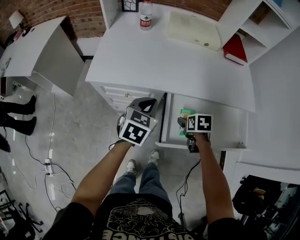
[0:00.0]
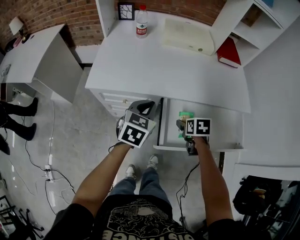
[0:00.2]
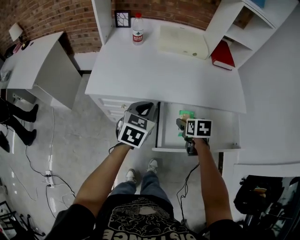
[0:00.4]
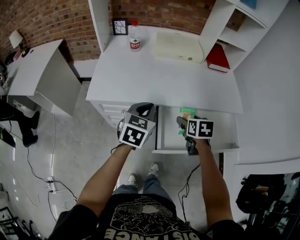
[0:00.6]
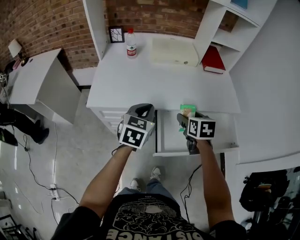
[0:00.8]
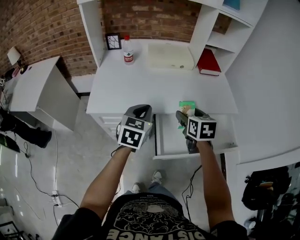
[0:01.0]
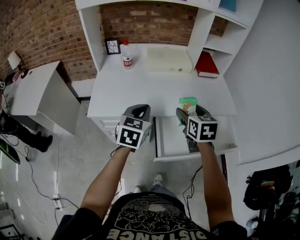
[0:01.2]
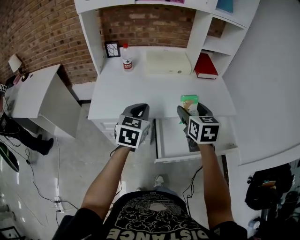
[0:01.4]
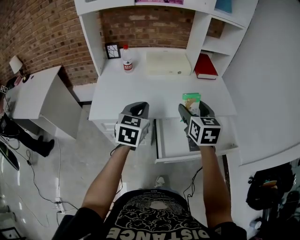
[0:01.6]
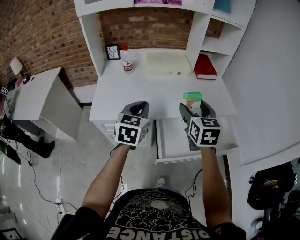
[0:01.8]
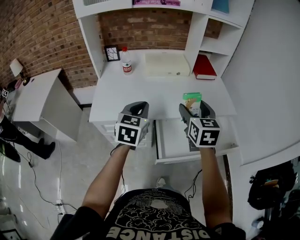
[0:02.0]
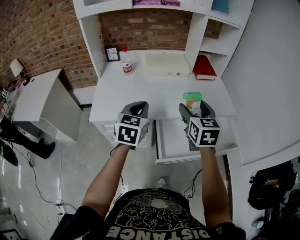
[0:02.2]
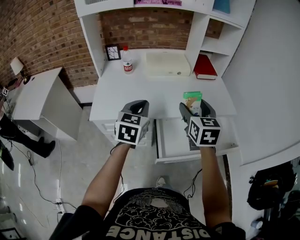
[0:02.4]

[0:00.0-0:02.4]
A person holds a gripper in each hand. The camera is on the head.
0:00.0 to 0:01.2: The left gripper heads upward, covering approximately 15 cm. Meanwhile the right gripper travels upward by roughly 25 cm, and points its fingers about 40 degrees further upward.
0:01.2 to 0:02.4: The right gripper heads upward, covering roughly 5 cm.

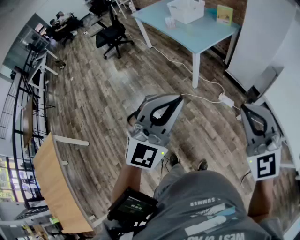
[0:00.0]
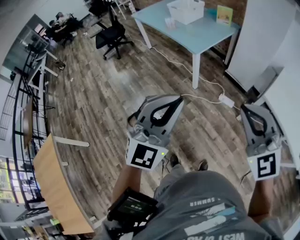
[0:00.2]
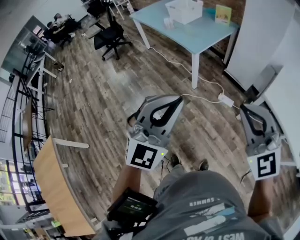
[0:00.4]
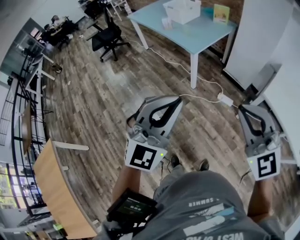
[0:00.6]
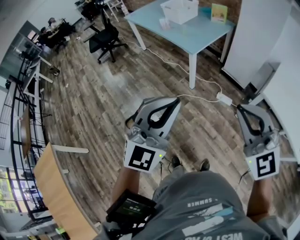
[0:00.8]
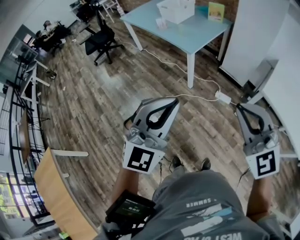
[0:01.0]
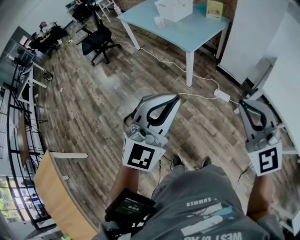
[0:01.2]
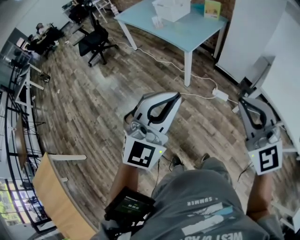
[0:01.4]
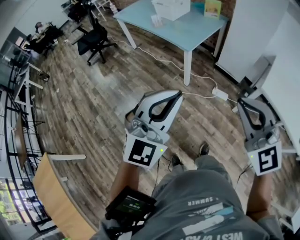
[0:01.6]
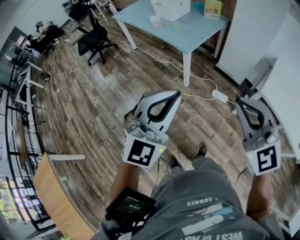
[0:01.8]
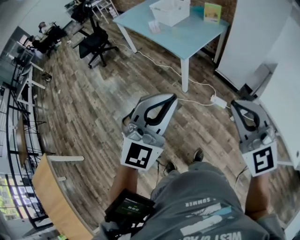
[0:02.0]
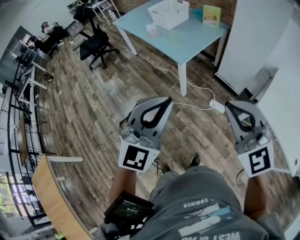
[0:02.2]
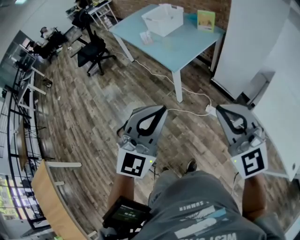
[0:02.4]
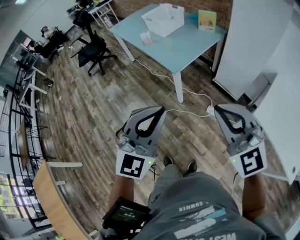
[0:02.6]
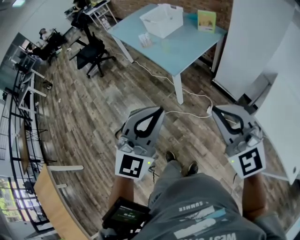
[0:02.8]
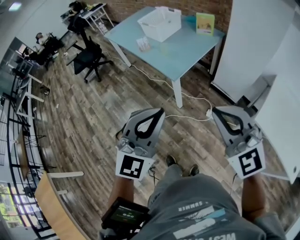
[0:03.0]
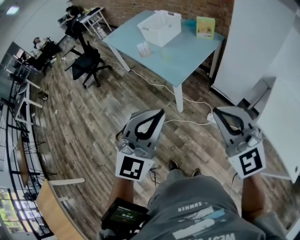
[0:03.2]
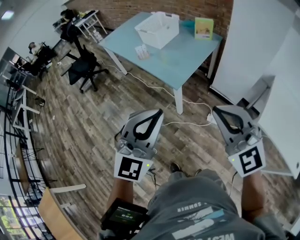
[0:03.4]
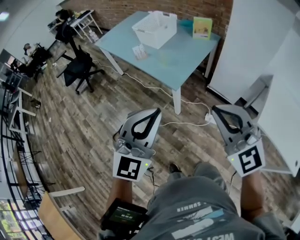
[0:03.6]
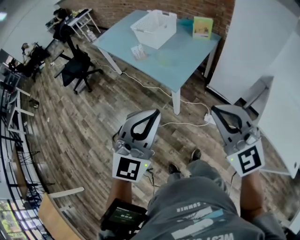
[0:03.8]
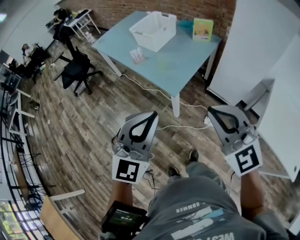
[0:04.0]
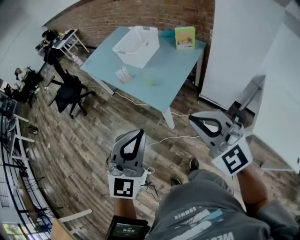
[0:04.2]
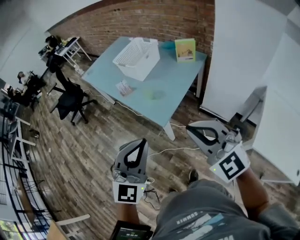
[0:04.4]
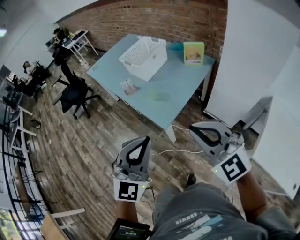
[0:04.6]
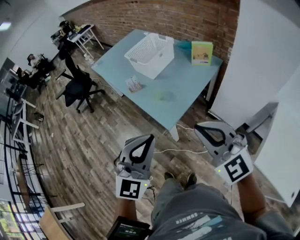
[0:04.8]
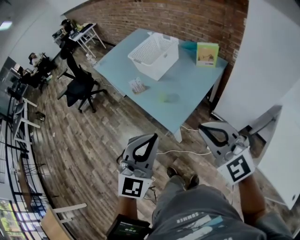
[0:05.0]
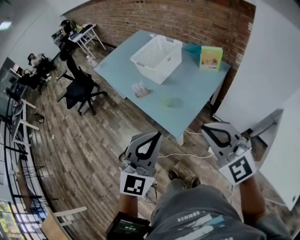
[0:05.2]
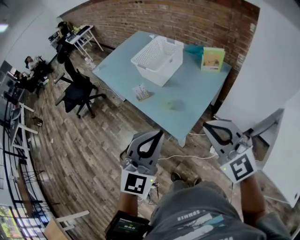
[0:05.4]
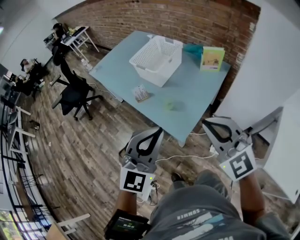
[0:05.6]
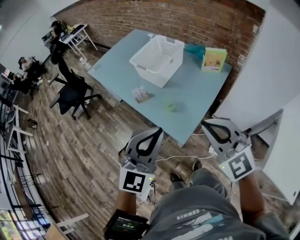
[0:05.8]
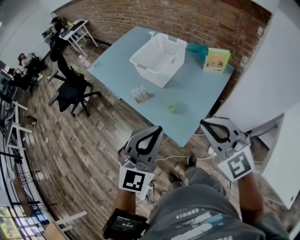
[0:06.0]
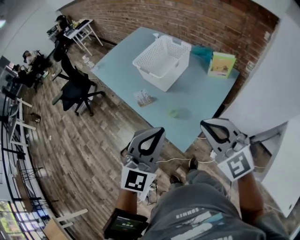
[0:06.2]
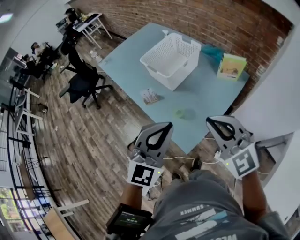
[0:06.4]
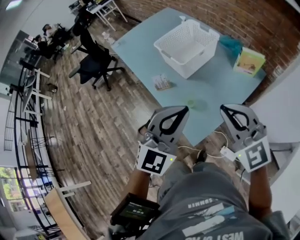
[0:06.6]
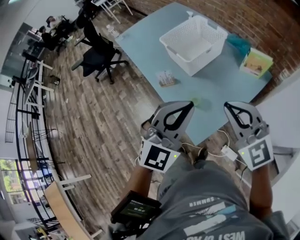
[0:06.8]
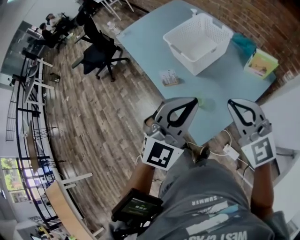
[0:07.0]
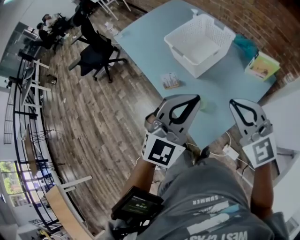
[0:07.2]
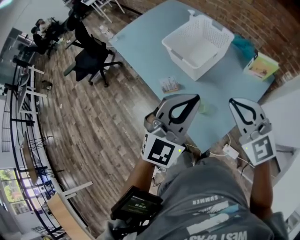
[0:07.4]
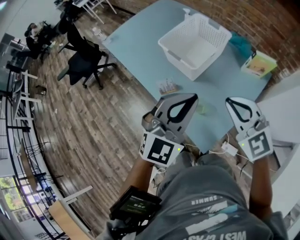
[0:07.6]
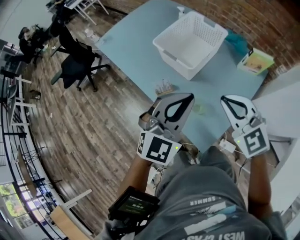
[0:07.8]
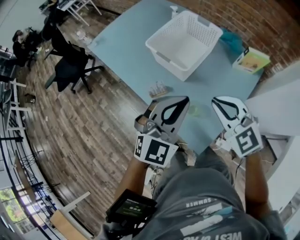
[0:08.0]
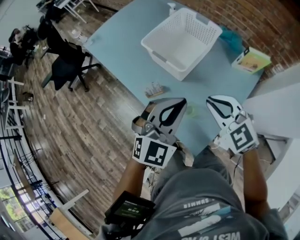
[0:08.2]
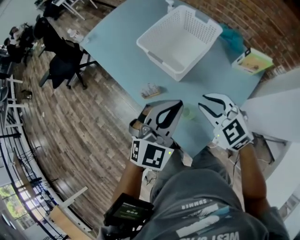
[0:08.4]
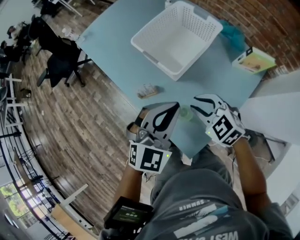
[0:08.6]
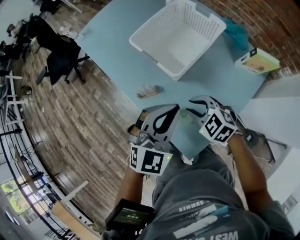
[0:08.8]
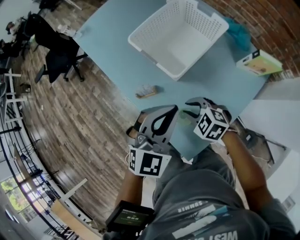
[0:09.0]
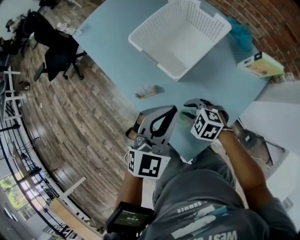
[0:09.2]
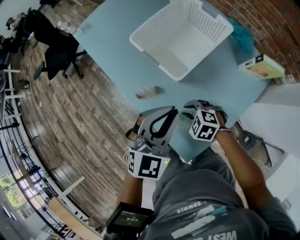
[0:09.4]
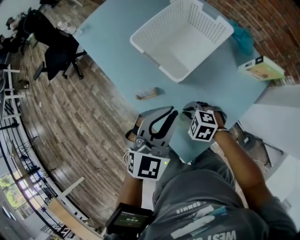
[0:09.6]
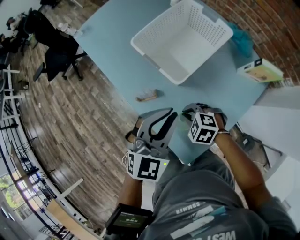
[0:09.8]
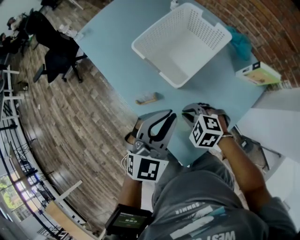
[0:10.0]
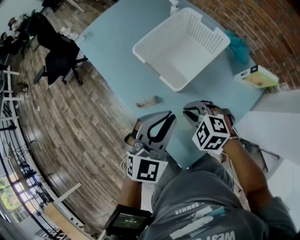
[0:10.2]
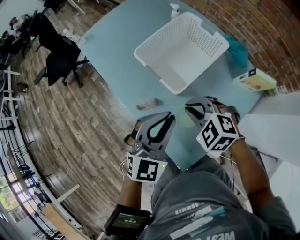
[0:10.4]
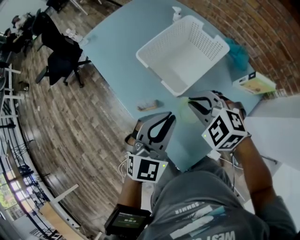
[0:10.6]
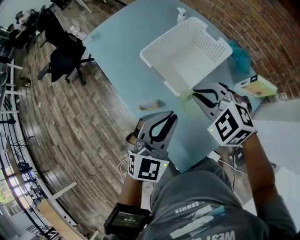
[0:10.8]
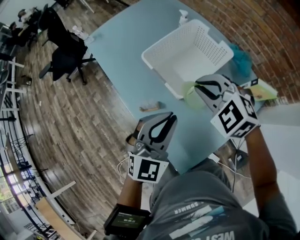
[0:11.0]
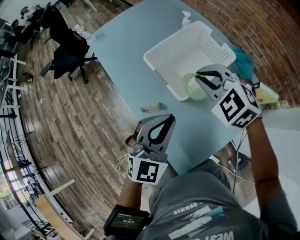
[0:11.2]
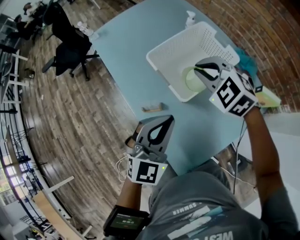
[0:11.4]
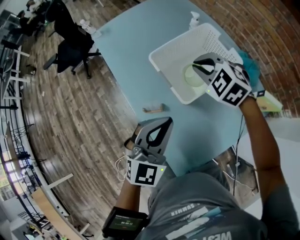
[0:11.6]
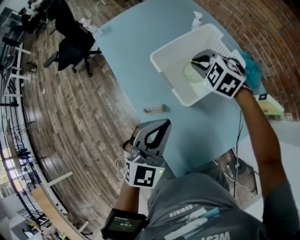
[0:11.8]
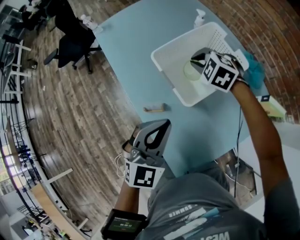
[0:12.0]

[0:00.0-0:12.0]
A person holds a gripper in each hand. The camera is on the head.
0:00.0 to 0:01.6: The right gripper heads to the left, covering about 5 cm. Meanwhile the left gripper is displaced forward and to the left by roughly 10 cm.
0:01.6 to 0:03.0: The left gripper shifts about 20 cm forward and to the right, while the right gripper travels forward by approximately 20 cm.
0:03.0 to 0:04.4: The two grippers go roughly 20 cm forward.
0:04.4 to 0:06.0: The grippers both shift forward by roughly 25 cm.
0:06.0 to 0:07.6: The grippers both shift forward by approximately 20 cm.
0:07.6 to 0:09.0: The right gripper is displaced downward by approximately 25 cm, swivels some 40 degrees, and opens up; the left gripper goes roughly 15 cm downward and forward.
0:09.0 to 0:10.4: The right gripper heads upward and forward, covering roughly 15 cm.
0:10.4 to 0:12.0: The right gripper shifts approximately 20 cm forward.

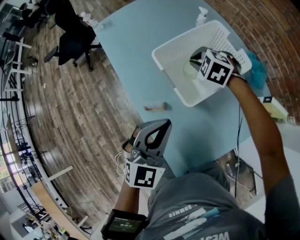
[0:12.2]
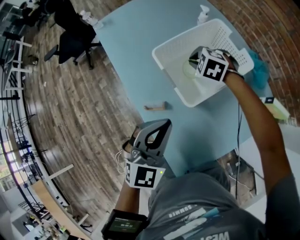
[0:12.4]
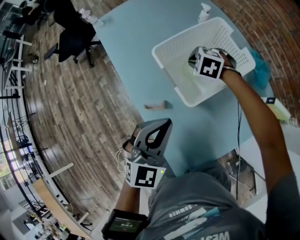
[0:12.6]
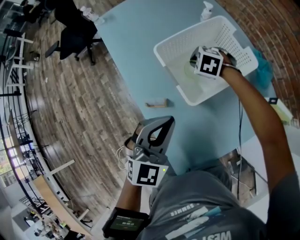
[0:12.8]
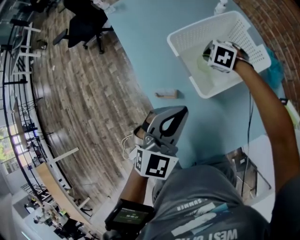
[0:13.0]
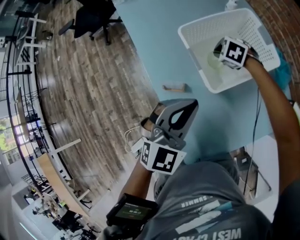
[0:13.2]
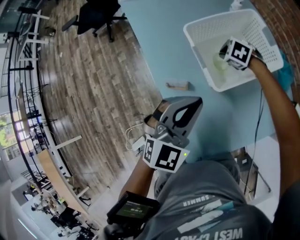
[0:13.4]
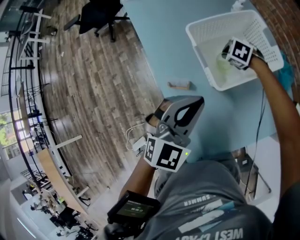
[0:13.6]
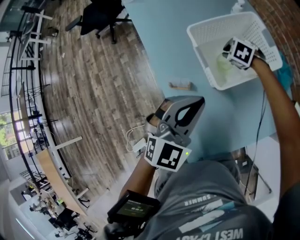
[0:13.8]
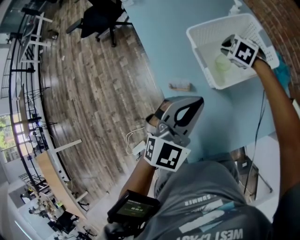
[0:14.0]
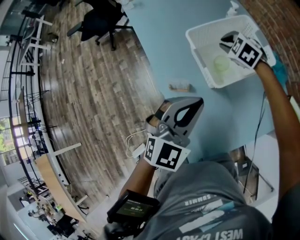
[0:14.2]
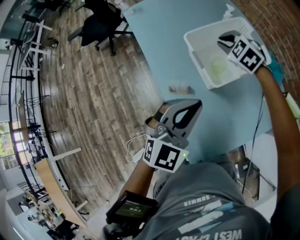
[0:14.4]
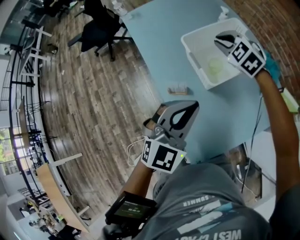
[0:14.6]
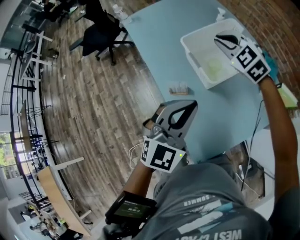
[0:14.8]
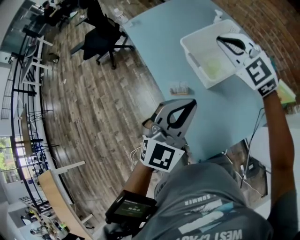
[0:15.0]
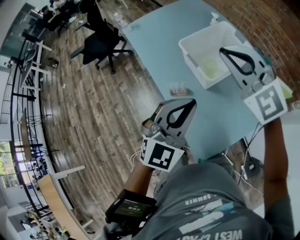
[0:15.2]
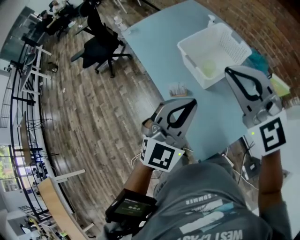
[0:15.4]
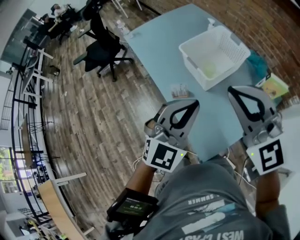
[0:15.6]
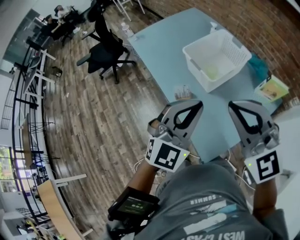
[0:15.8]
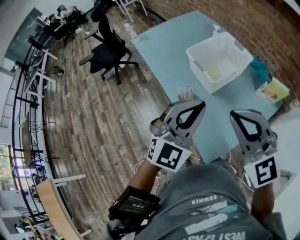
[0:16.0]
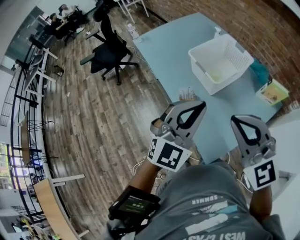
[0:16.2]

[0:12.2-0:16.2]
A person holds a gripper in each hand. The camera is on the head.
0:12.2 to 0:13.6: The right gripper moves downward, about 10 cm, and rotates approximately 20 degrees.
0:13.6 to 0:14.8: The left gripper heads upward, covering about 5 cm; the right gripper travels upward by some 25 cm, and angles its fingers upward, by approximately 40 degrees.
0:14.8 to 0:16.2: The left gripper is displaced backward and upward by roughly 10 cm, while the right gripper heads backward, covering approximately 35 cm, and changes its angle by approximately 20 degrees.

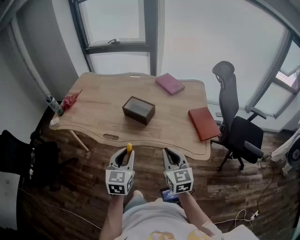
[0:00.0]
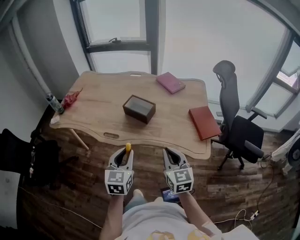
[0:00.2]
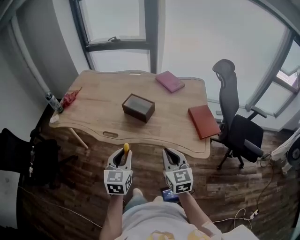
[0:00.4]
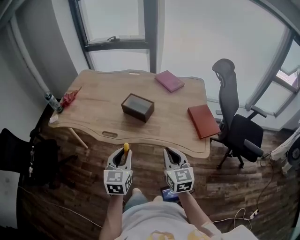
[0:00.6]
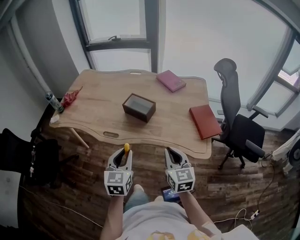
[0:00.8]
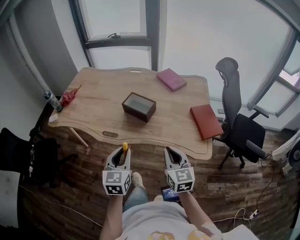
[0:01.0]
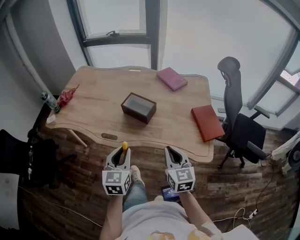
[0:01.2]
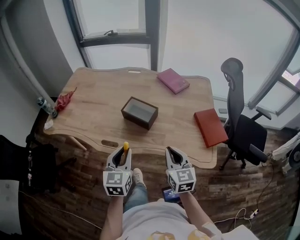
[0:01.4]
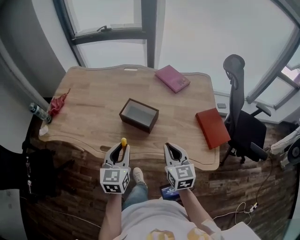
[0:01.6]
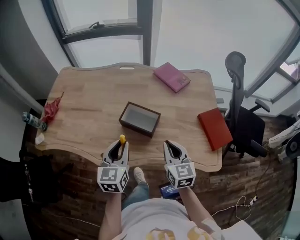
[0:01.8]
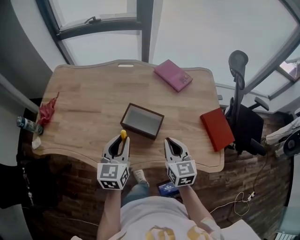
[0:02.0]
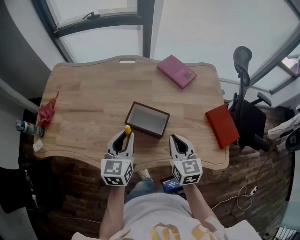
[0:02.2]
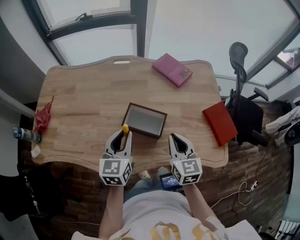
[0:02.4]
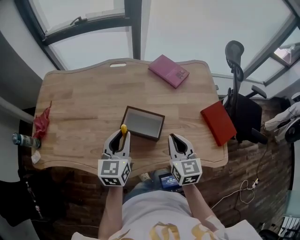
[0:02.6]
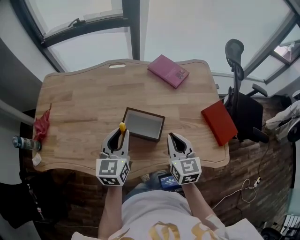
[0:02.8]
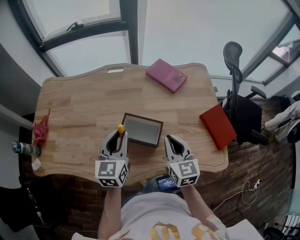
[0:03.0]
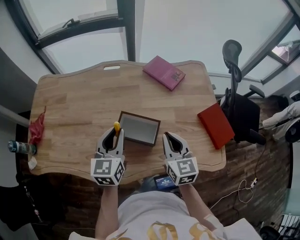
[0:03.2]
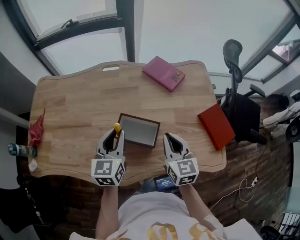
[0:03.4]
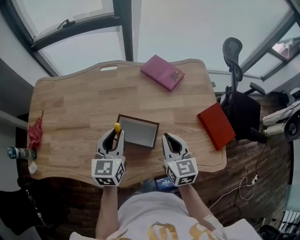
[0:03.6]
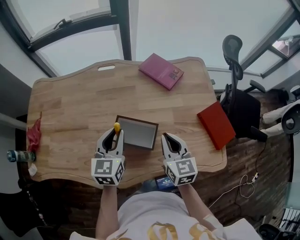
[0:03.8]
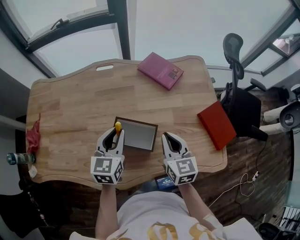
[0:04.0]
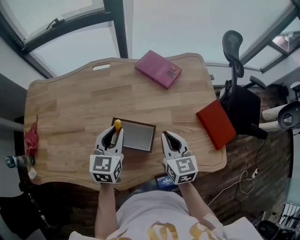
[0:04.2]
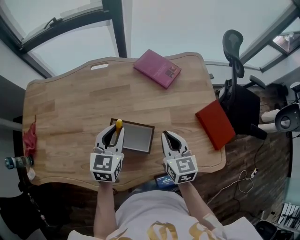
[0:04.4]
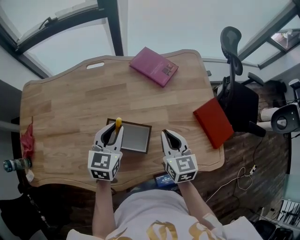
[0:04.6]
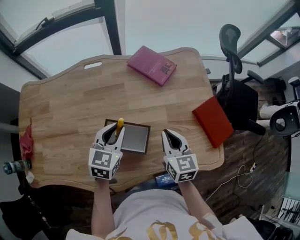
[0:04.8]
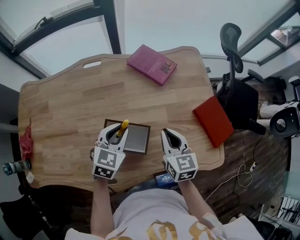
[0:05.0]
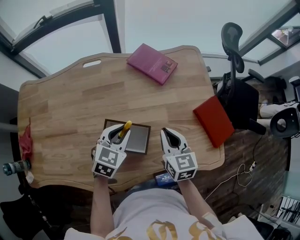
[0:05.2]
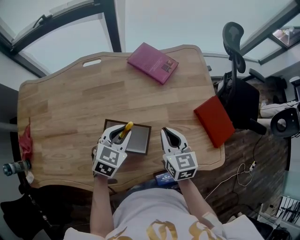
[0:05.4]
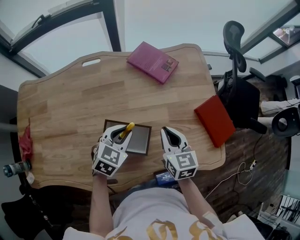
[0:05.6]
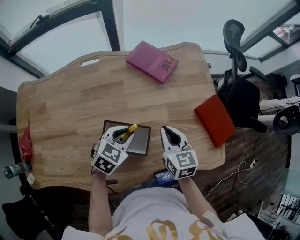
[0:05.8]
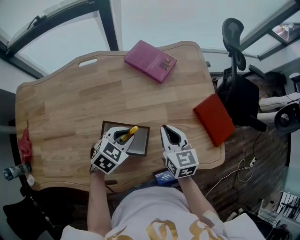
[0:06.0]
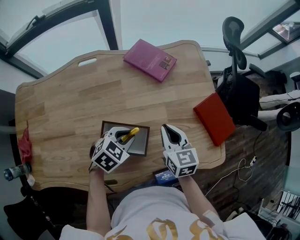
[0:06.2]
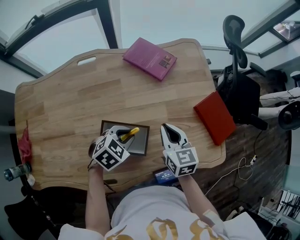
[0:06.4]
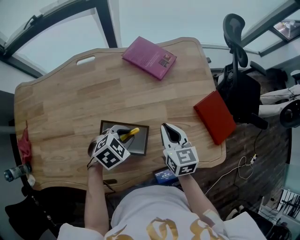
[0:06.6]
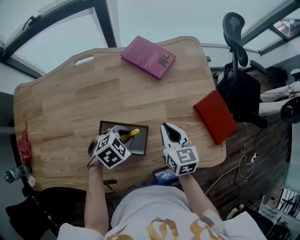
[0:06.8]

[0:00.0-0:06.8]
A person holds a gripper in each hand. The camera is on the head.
0:00.0 to 0:01.4: Both grippers travel together forward, approximately 10 cm.
0:01.4 to 0:02.8: Both grippers move forward, some 20 cm.
0:02.8 to 0:04.0: The grippers both shift forward by about 5 cm.
0:04.0 to 0:05.4: The left gripper shifts roughly 10 cm downward and to the right, and changes its angle by about 30 degrees. The right gripper moves roughly 5 cm.
0:05.4 to 0:06.8: The left gripper goes roughly 5 cm downward, and rotates some 30 degrees.
